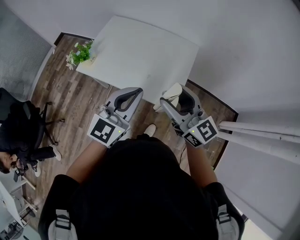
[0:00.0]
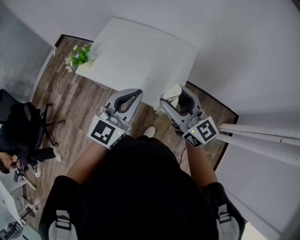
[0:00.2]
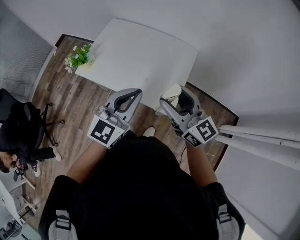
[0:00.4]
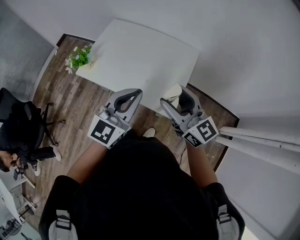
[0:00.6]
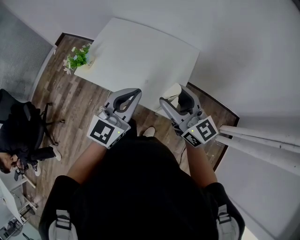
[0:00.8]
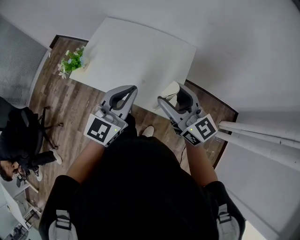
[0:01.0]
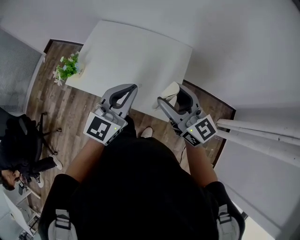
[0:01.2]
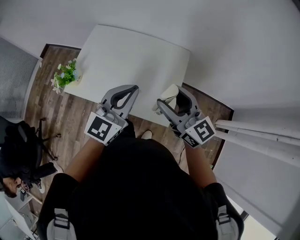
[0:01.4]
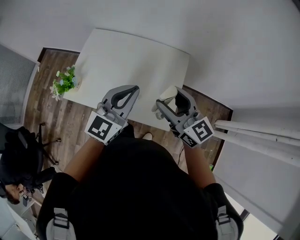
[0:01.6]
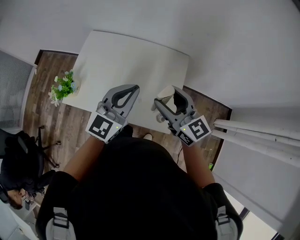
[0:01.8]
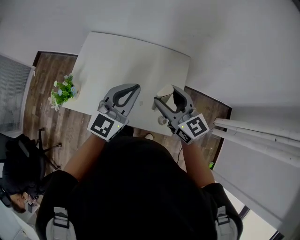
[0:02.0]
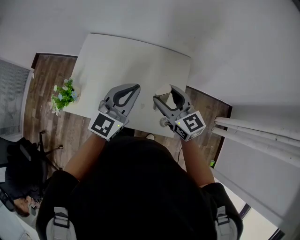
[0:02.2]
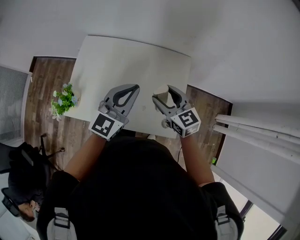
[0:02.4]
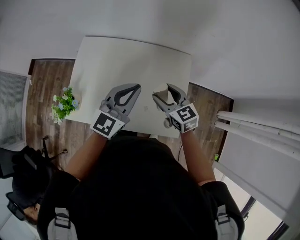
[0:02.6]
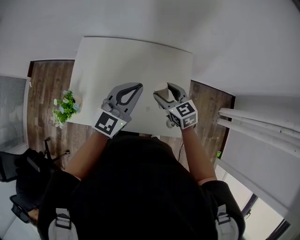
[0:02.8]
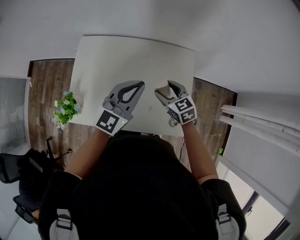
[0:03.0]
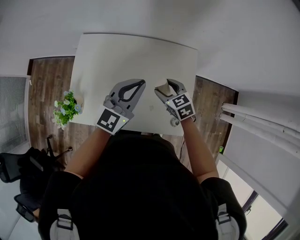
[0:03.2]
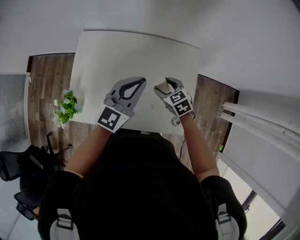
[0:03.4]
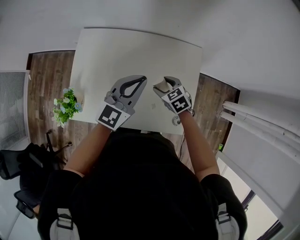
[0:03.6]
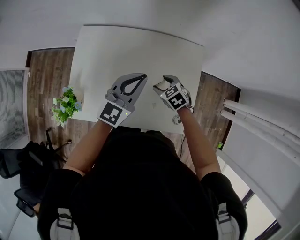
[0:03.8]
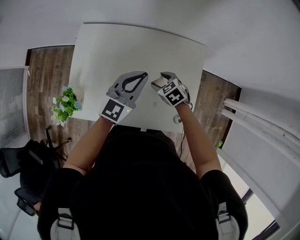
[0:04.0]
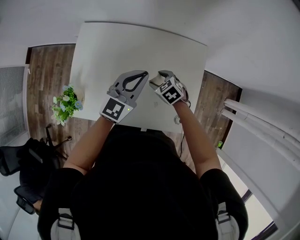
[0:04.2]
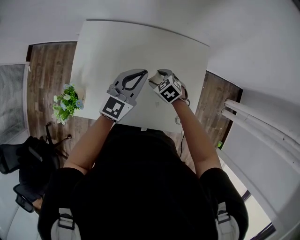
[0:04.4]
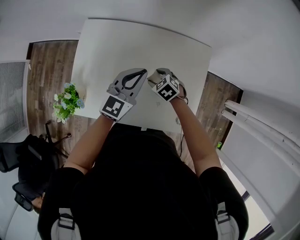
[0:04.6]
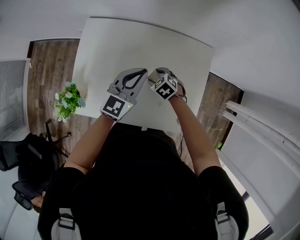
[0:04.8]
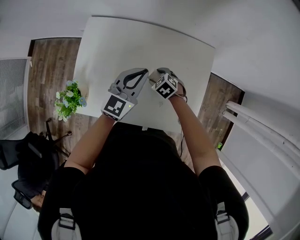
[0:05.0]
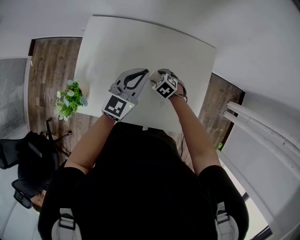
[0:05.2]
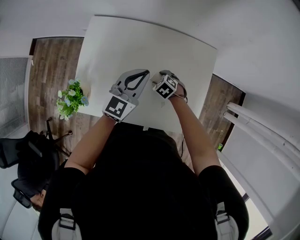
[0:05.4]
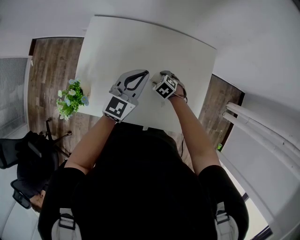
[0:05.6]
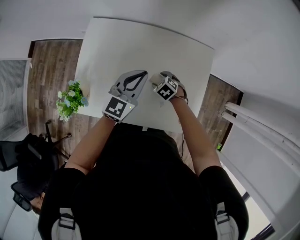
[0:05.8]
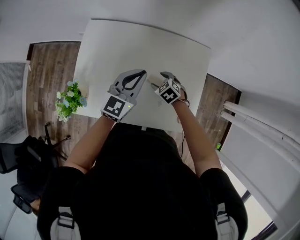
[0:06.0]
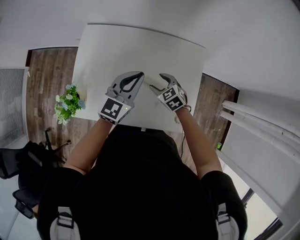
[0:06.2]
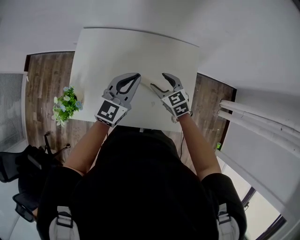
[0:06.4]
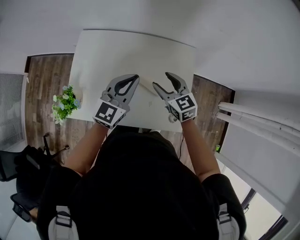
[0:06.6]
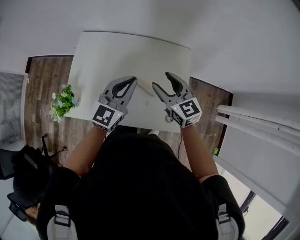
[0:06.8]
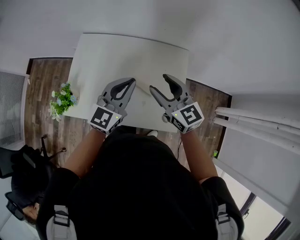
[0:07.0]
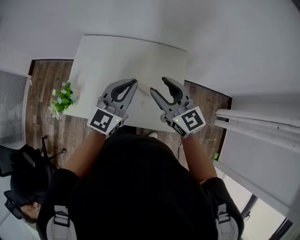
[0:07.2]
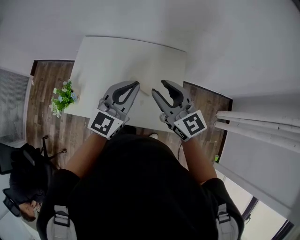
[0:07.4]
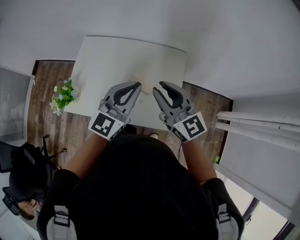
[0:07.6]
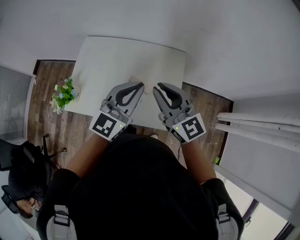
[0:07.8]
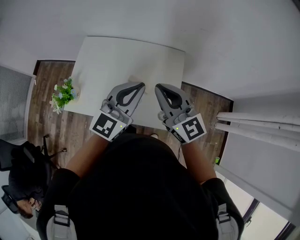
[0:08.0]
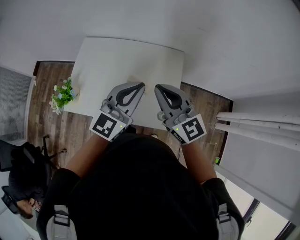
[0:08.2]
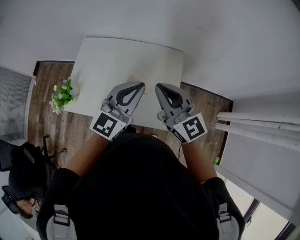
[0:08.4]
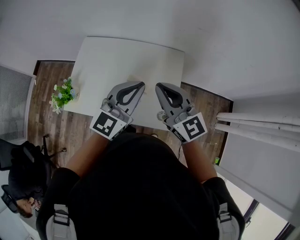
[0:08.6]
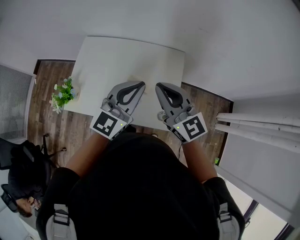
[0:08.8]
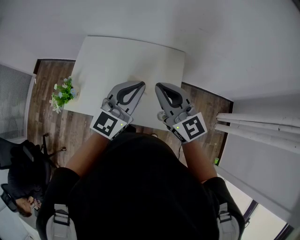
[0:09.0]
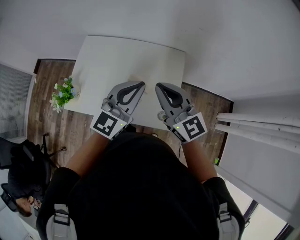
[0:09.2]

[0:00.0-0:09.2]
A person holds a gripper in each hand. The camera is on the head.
0:00.0 to 0:01.6: Both grippers travel together forward, about 15 cm.
0:01.6 to 0:03.0: The left gripper goes some 15 cm forward and downward; the right gripper goes about 25 cm downward and forward, and angles its fingers downward, by some 40 degrees.
0:03.0 to 0:04.6: The right gripper is displaced downward and to the left by roughly 15 cm, and rotates approximately 30 degrees. The left gripper goes approximately 10 cm downward and forward.
0:04.6 to 0:06.2: The right gripper moves about 5 cm.
0:06.2 to 0:07.6: The right gripper heads upward and backward, covering approximately 35 cm, tips its fingers upward by approximately 50 degrees, and closes, while the left gripper moves upward, backward and to the right, roughly 20 cm.
0:07.6 to 0:09.2: The right gripper closes.

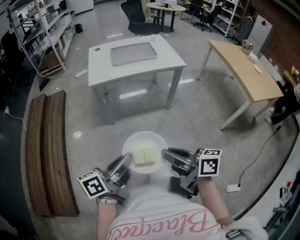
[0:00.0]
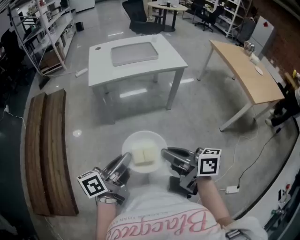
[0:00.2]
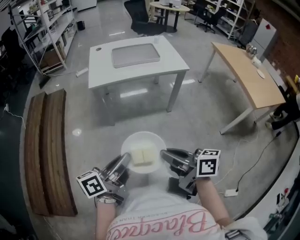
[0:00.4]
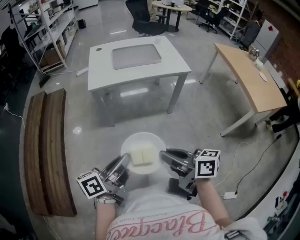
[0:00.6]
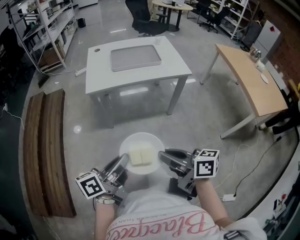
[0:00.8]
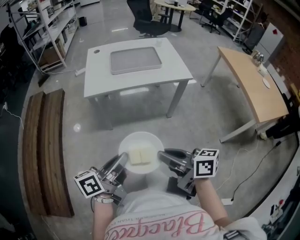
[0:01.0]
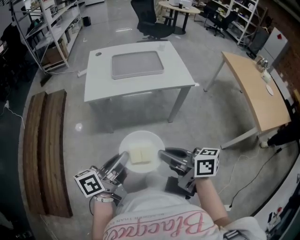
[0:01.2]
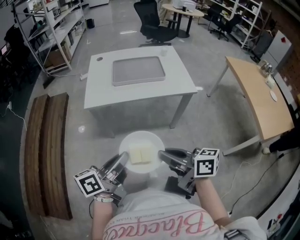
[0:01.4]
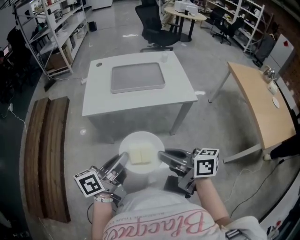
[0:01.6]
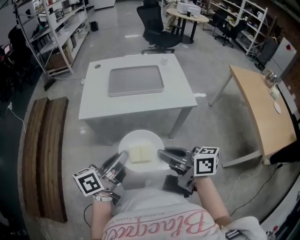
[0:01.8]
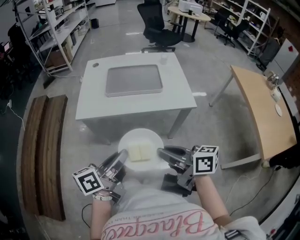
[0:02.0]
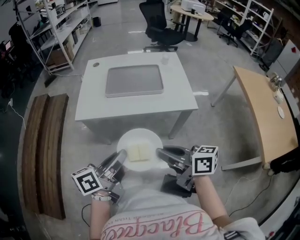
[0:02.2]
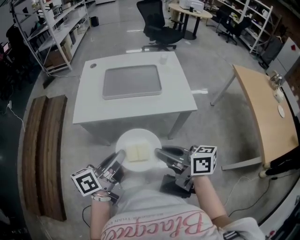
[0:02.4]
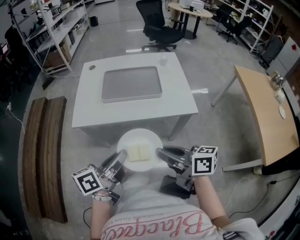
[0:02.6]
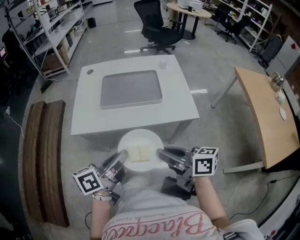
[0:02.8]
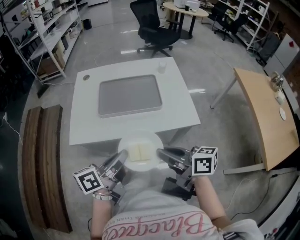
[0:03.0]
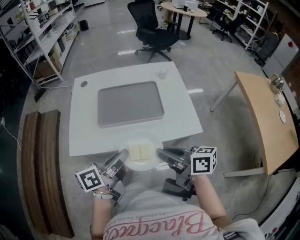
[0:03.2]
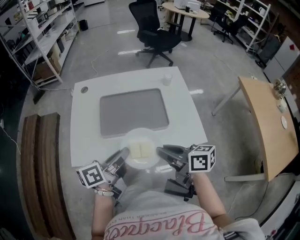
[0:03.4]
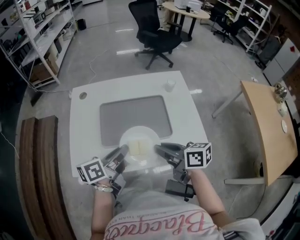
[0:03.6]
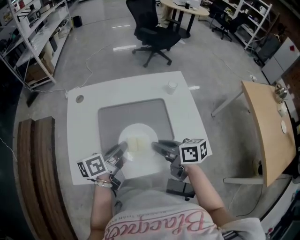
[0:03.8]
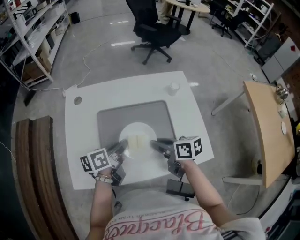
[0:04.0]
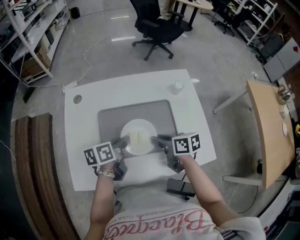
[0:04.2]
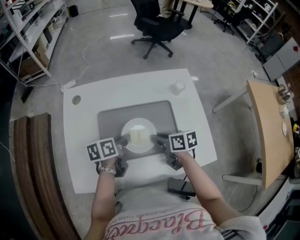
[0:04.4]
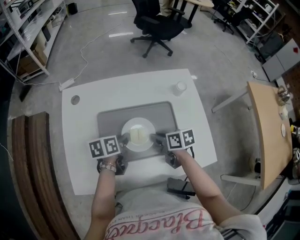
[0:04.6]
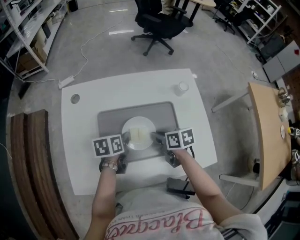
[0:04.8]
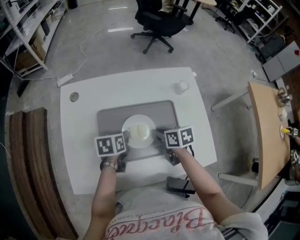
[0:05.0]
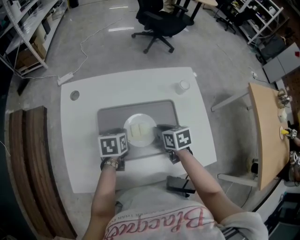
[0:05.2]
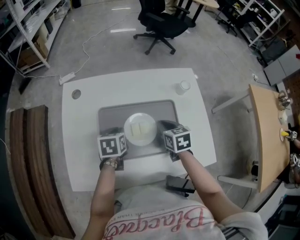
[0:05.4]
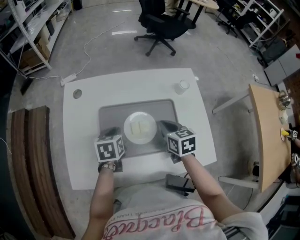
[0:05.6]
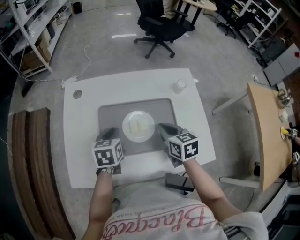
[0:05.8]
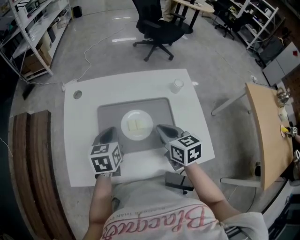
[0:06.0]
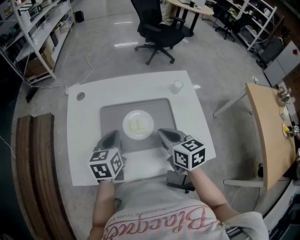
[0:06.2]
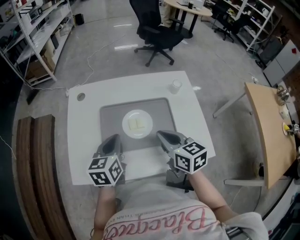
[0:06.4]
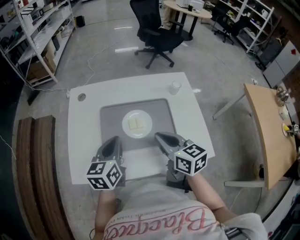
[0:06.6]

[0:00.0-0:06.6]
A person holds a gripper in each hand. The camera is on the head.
0:00.0 to 0:01.6: Both grippers move forward, roughly 20 cm.
0:01.6 to 0:03.2: The two grippers go approximately 20 cm forward.
0:03.2 to 0:05.0: The two grippers go roughly 30 cm forward and downward. The left gripper points its fingers about 40 degrees further downward. The right gripper points its fingers about 30 degrees further downward.
0:05.0 to 0:06.6: The grippers both shift upward and backward by some 15 cm. The left gripper swivels some 40 degrees, and closes. Meanwhile the right gripper rotates approximately 30 degrees.

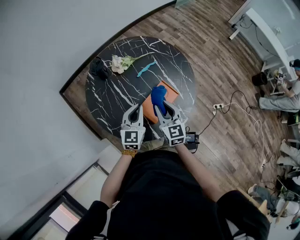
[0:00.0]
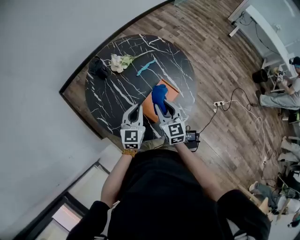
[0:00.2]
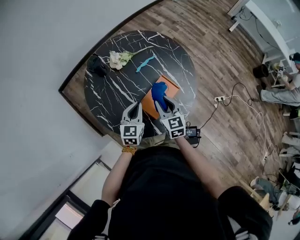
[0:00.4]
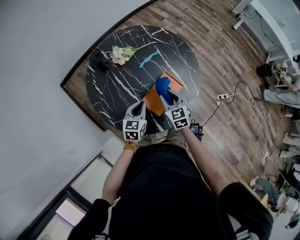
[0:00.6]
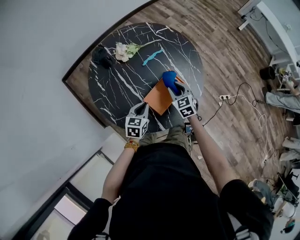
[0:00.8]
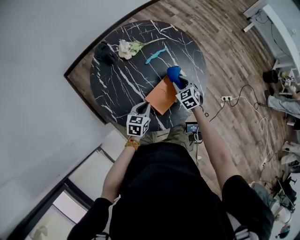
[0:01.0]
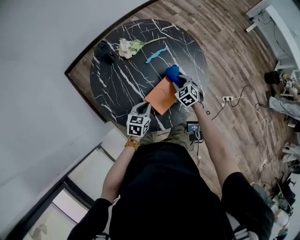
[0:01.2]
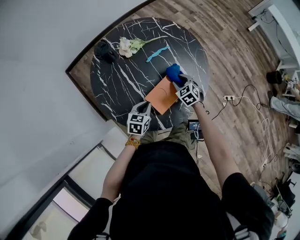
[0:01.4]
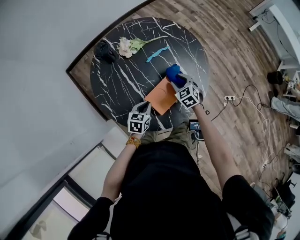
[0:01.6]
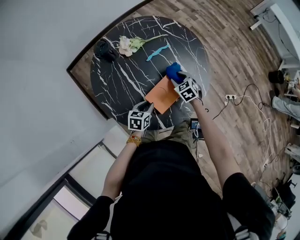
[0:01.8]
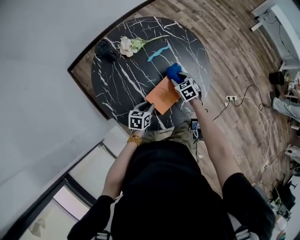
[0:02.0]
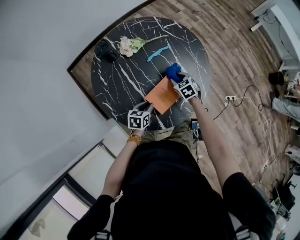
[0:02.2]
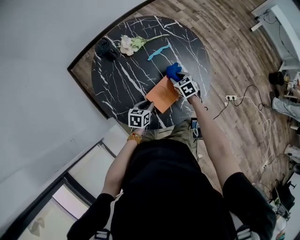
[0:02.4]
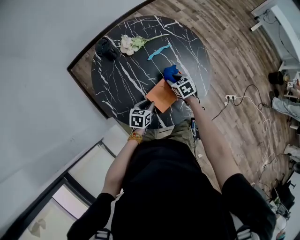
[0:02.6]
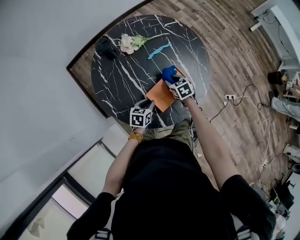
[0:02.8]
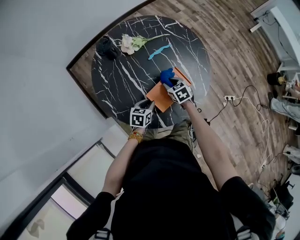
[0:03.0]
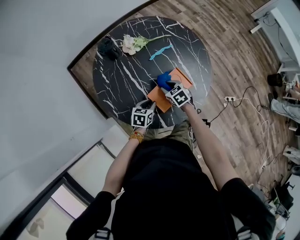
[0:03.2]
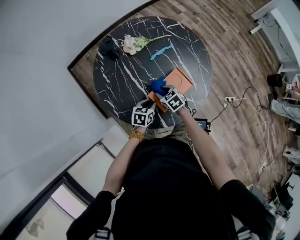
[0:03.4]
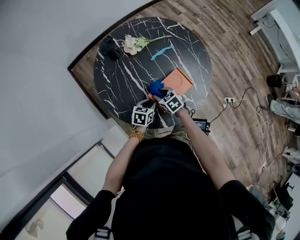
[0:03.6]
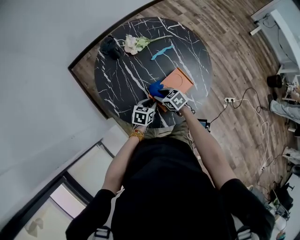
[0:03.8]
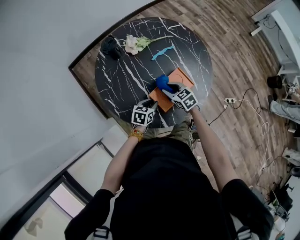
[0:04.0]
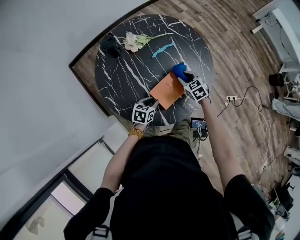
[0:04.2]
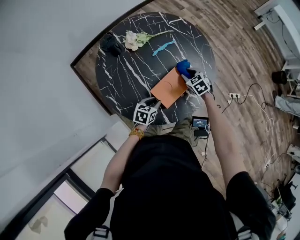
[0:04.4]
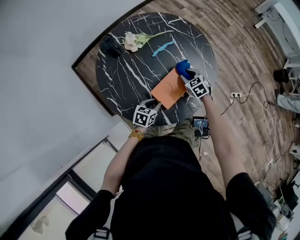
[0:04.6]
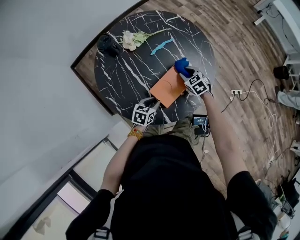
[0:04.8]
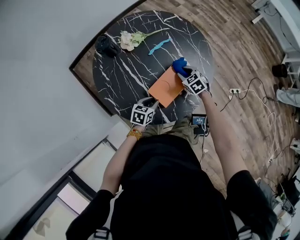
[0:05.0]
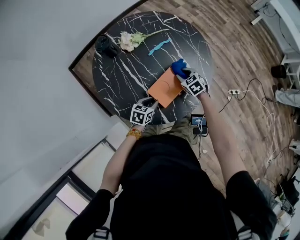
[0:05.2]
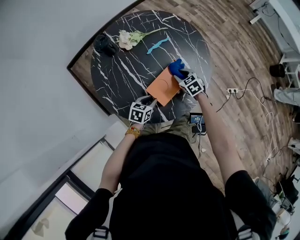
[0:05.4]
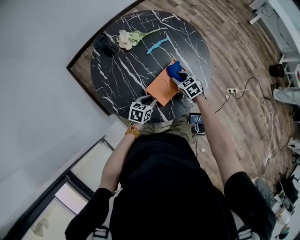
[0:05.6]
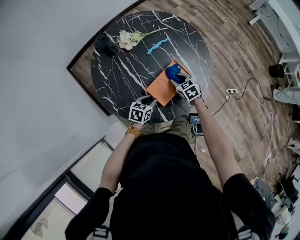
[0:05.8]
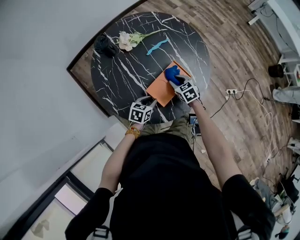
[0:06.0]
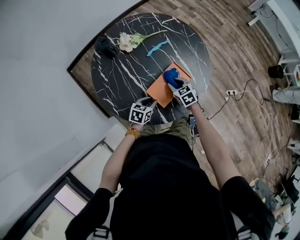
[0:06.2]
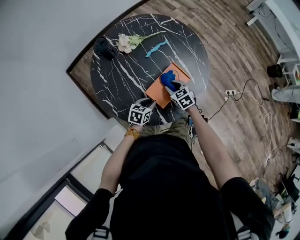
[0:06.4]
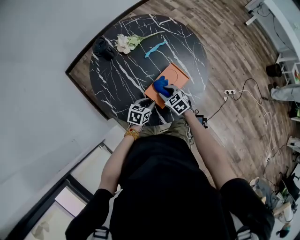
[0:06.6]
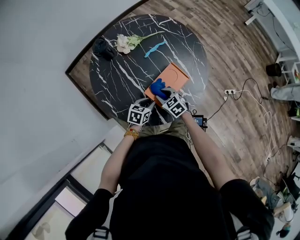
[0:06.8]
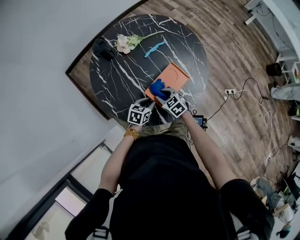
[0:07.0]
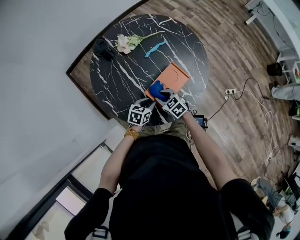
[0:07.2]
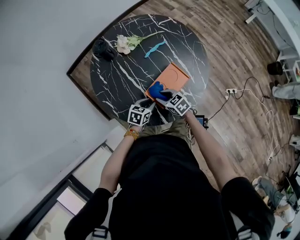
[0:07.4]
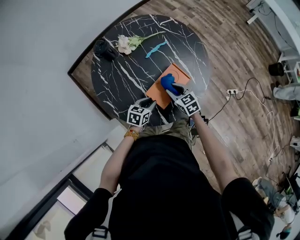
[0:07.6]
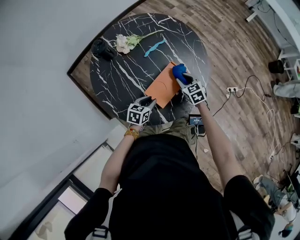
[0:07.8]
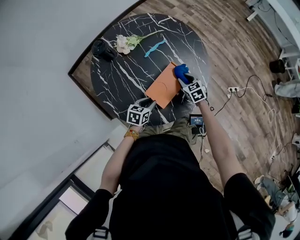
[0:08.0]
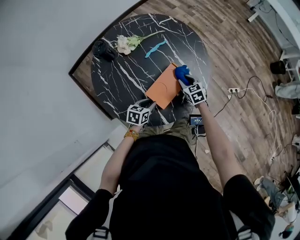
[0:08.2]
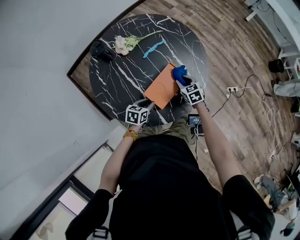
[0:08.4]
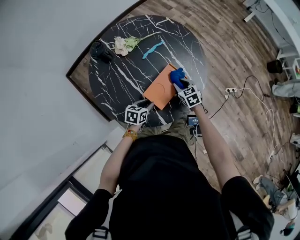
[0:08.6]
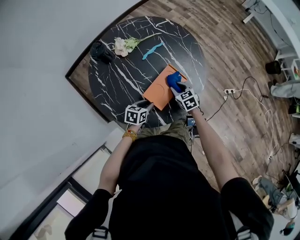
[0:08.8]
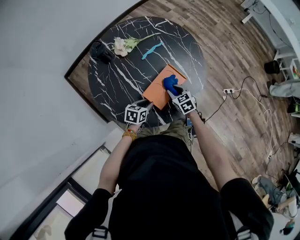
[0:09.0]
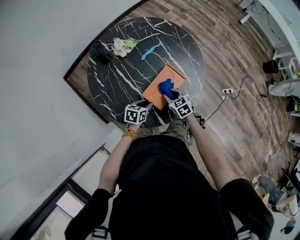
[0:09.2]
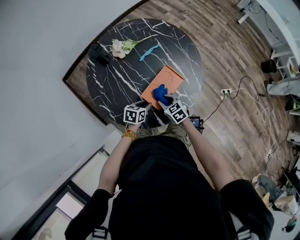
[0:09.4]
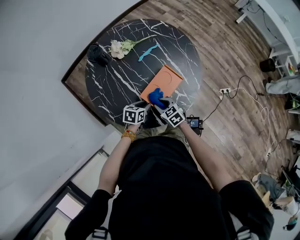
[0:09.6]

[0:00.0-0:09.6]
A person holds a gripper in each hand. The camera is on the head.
0:00.0 to 0:01.6: The right gripper heads downward and forward, covering about 20 cm, and angles its fingers downward, by approximately 30 degrees. Meanwhile the left gripper moves downward, approximately 15 cm, and tips its fingers downward by approximately 30 degrees.
0:01.6 to 0:03.2: The left gripper opens up. The right gripper shifts roughly 10 cm to the left.
0:03.2 to 0:04.8: The right gripper shifts approximately 10 cm to the right.
0:04.8 to 0:06.4: The right gripper travels backward and to the left by approximately 10 cm.
0:06.4 to 0:08.0: The right gripper goes some 10 cm to the right.
0:08.0 to 0:09.6: The right gripper is displaced backward and to the left by some 20 cm.
